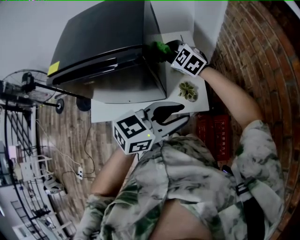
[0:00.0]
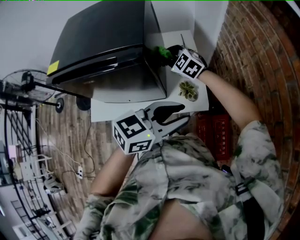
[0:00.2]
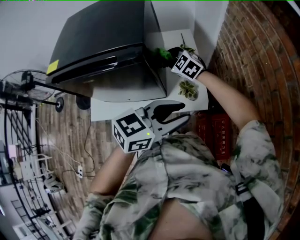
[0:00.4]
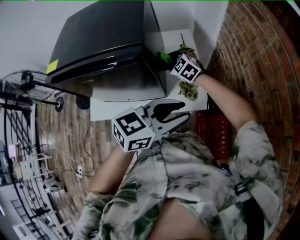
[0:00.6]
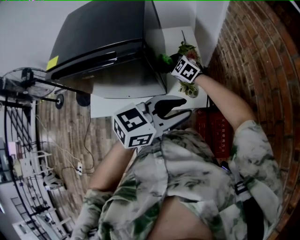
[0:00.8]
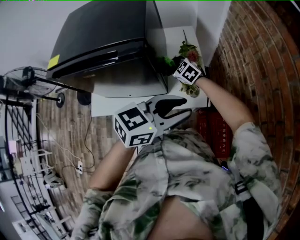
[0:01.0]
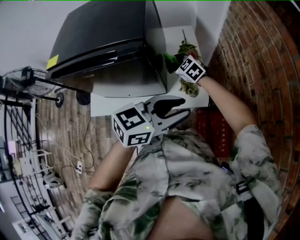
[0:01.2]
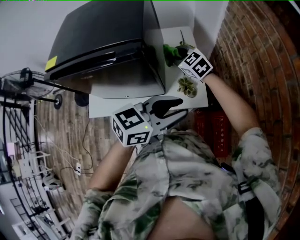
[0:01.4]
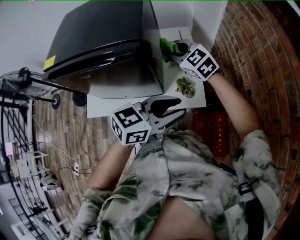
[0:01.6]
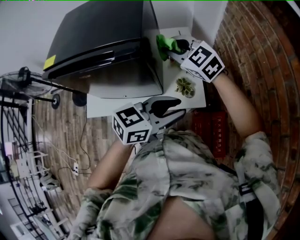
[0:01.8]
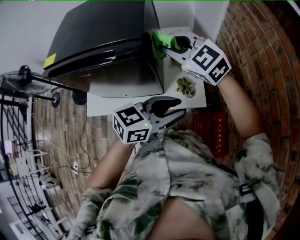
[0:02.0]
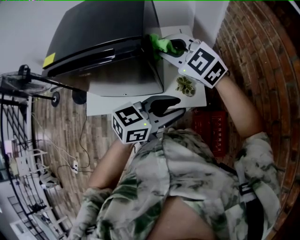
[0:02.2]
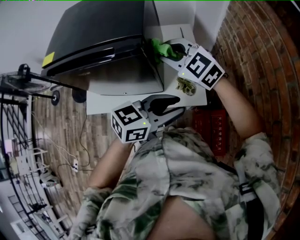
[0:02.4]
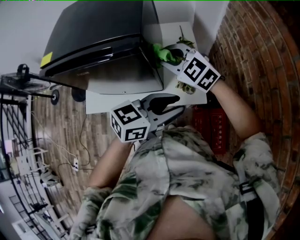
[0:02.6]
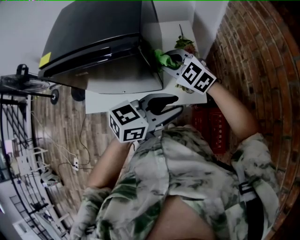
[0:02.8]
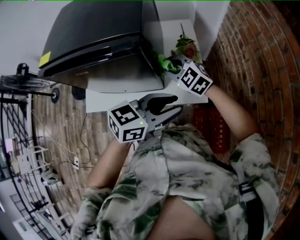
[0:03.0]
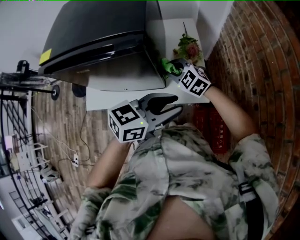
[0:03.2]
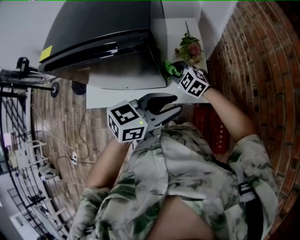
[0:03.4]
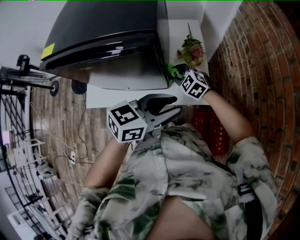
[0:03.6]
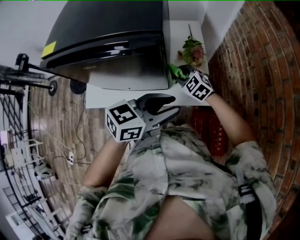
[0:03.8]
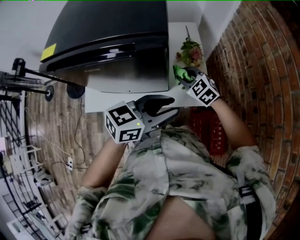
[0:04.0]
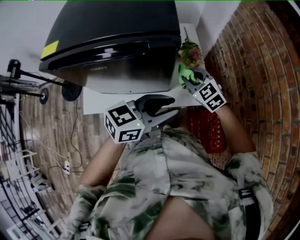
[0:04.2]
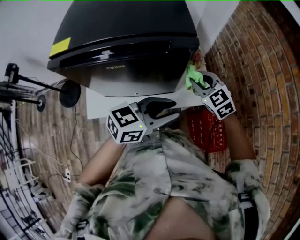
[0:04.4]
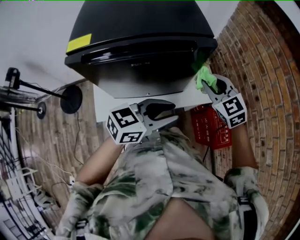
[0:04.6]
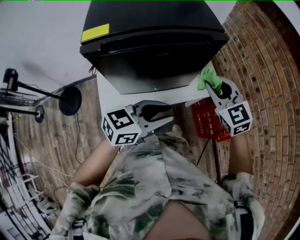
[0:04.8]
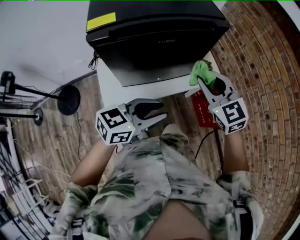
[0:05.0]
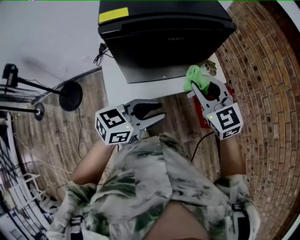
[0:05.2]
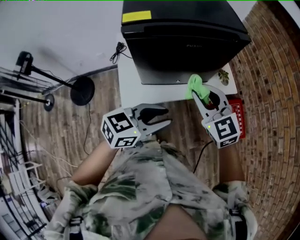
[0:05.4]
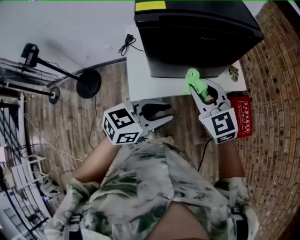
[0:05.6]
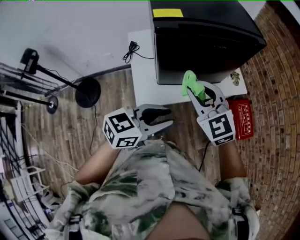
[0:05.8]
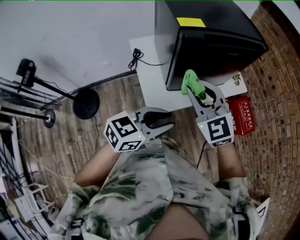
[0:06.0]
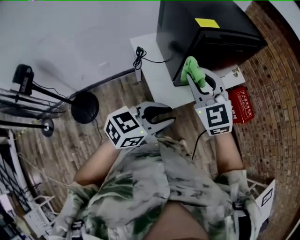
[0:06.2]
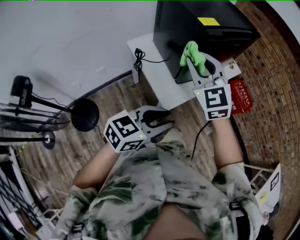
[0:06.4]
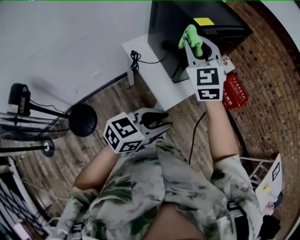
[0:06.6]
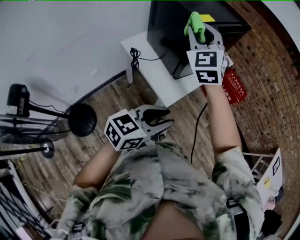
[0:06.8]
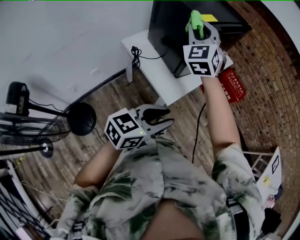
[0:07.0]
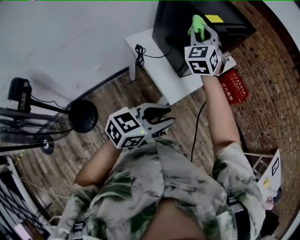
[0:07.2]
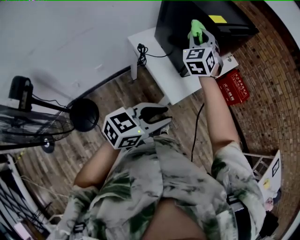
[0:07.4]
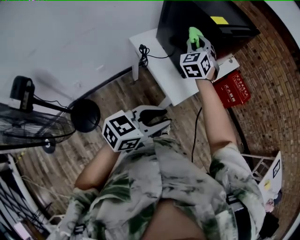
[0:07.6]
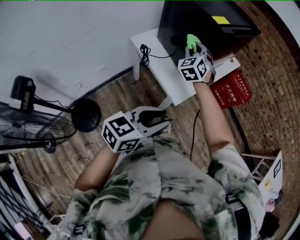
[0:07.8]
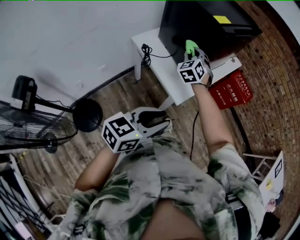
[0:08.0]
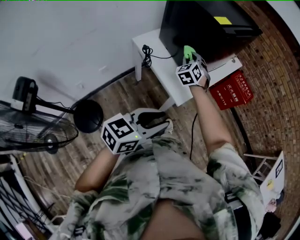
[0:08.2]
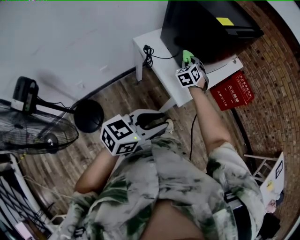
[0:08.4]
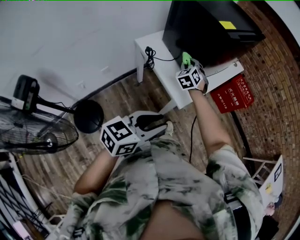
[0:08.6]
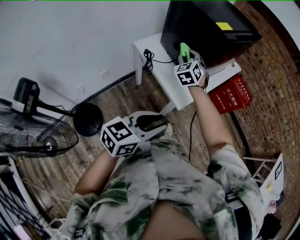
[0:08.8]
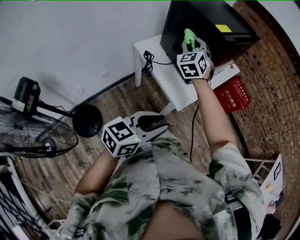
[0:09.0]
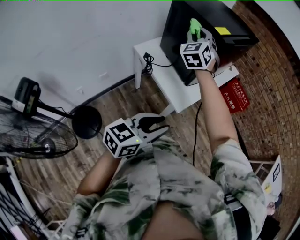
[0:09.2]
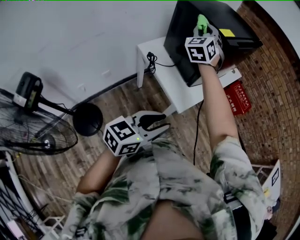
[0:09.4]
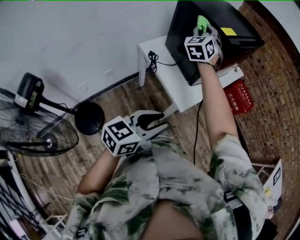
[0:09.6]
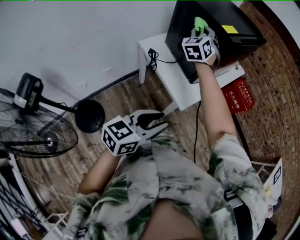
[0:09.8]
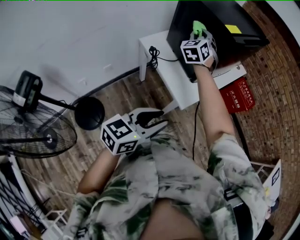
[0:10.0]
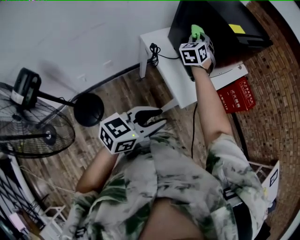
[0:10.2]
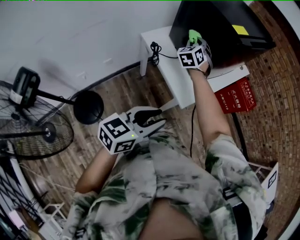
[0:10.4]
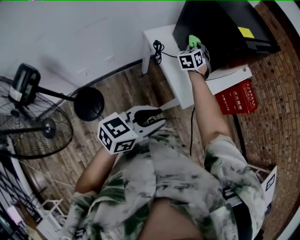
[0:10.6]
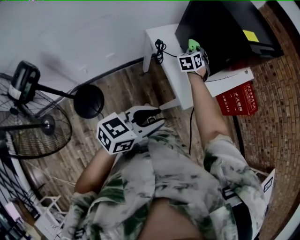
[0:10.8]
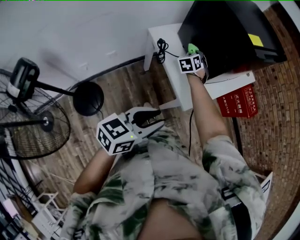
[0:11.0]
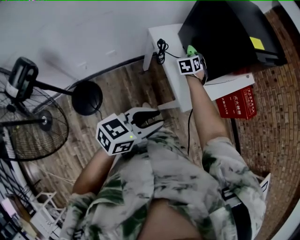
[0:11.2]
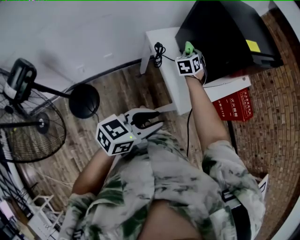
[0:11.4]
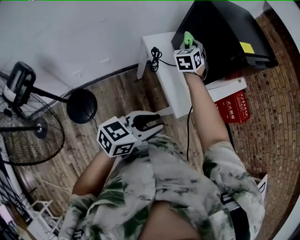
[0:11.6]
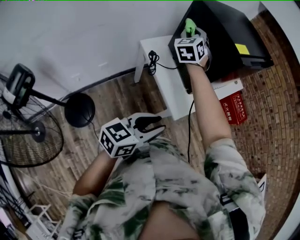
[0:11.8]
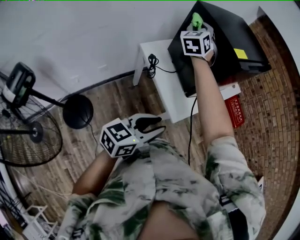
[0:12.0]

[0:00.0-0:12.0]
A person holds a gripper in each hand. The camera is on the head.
0.0 to 1.6 s: The right gripper travels downward and back again, approximately 15 cm each way.
1.6 to 3.0 s: The right gripper goes roughly 10 cm downward and backward.
3.0 to 4.4 s: The left gripper heads to the left, covering roughly 10 cm. The right gripper reaches about 10 cm downward, then returns, and changes its angle by approximately 20 degrees.
4.4 to 6.0 s: Both grippers are carried to the left and backward, approximately 40 cm. The right gripper rotates roughly 20 degrees.
6.0 to 7.6 s: The left gripper shifts by about 25 cm. Meanwhile the right gripper moves roughly 10 cm upward and comes back, and turns by approximately 50 degrees.
7.6 to 9.0 s: The right gripper moves some 15 cm downward and comes back.
9.0 to 10.4 s: The right gripper shifts some 15 cm downward and forward.
10.4 to 12.0 s: The right gripper goes about 20 cm upward and to the left.

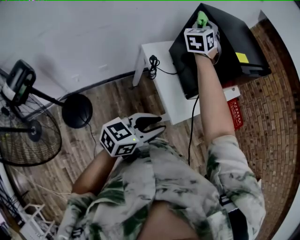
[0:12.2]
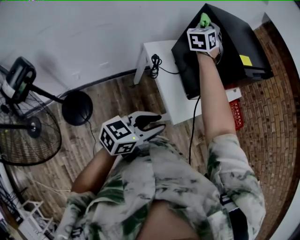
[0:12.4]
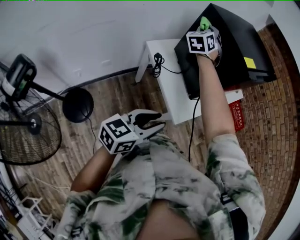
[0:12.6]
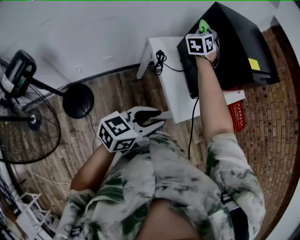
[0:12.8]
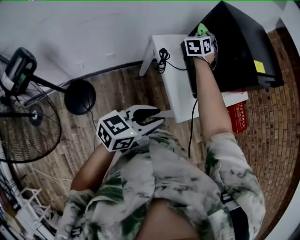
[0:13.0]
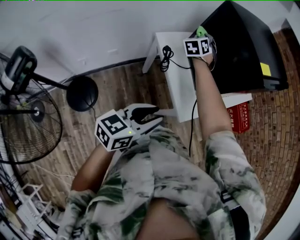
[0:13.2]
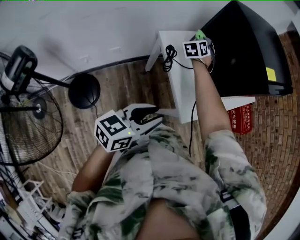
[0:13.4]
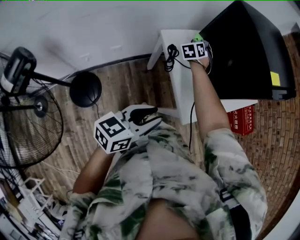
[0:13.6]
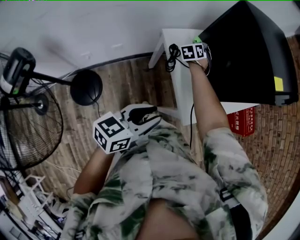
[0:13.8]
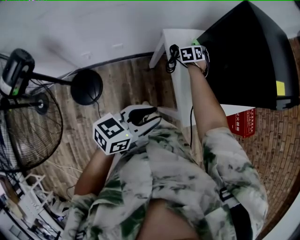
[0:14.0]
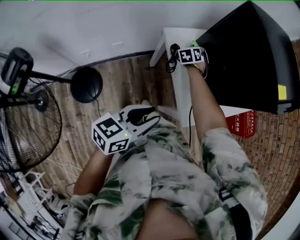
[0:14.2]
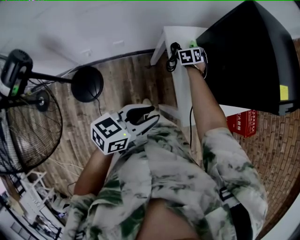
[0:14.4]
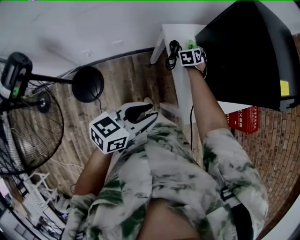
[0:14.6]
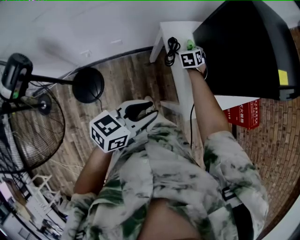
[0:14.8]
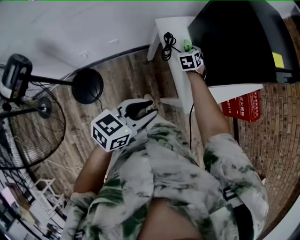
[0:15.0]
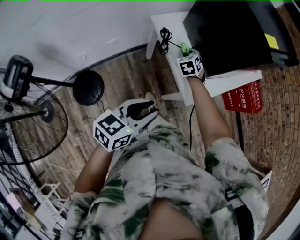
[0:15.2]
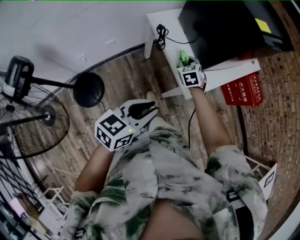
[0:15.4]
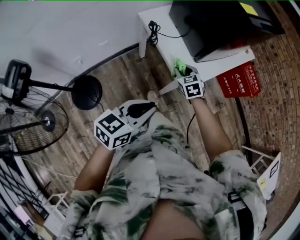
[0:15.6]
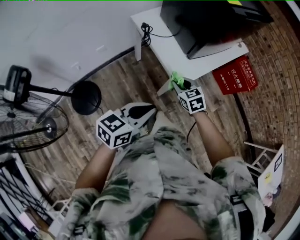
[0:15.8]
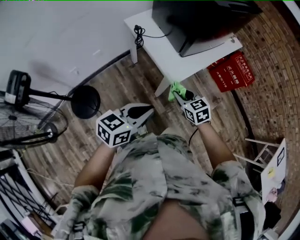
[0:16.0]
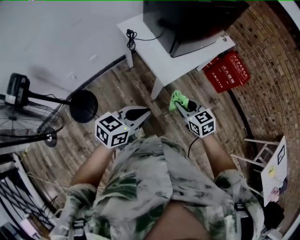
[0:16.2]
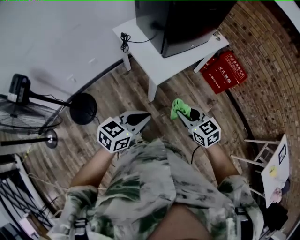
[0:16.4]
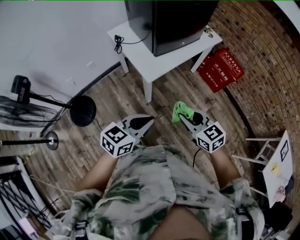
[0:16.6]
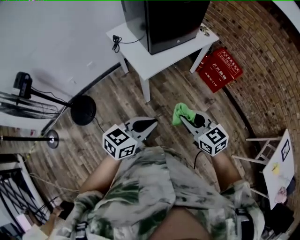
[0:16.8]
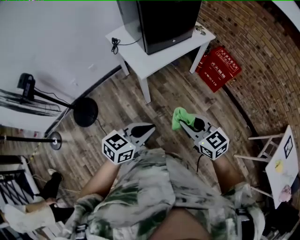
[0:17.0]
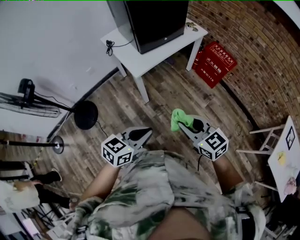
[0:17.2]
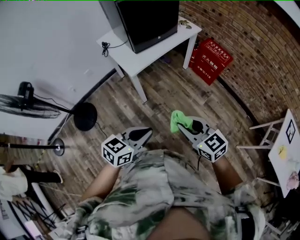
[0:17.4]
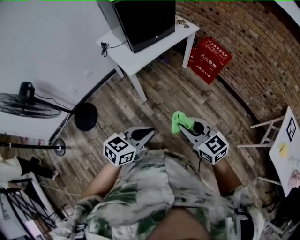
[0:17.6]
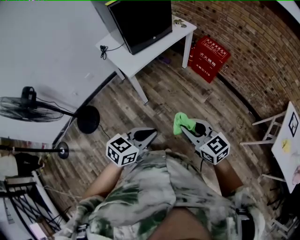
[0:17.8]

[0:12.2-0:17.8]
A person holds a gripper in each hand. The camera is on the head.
12.2 to 13.6 s: The left gripper is displaced to the left and downward by about 10 cm; the right gripper heads downward, covering about 30 cm, and rotates roughly 30 degrees.
13.6 to 15.0 s: The right gripper is displaced backward, downward and to the right by approximately 10 cm.
15.0 to 16.4 s: The left gripper heads to the right and backward, covering approximately 30 cm, and closes up; the right gripper travels backward and to the right by roughly 60 cm, and rotates approximately 40 degrees.
16.4 to 17.8 s: Both grippers move to the right and backward, about 35 cm.

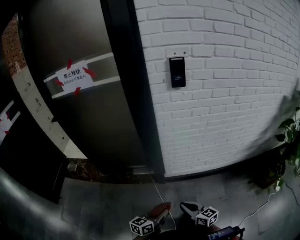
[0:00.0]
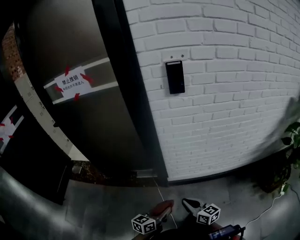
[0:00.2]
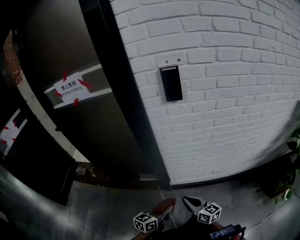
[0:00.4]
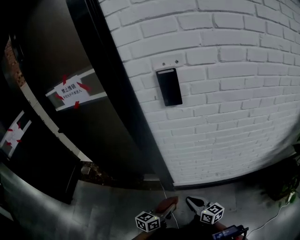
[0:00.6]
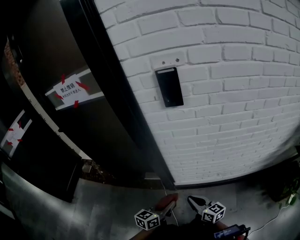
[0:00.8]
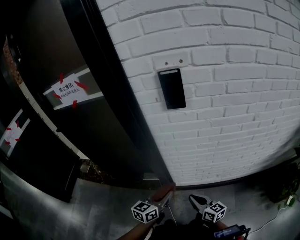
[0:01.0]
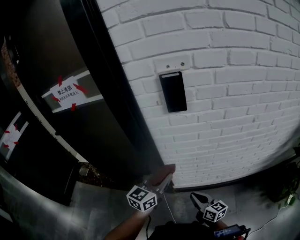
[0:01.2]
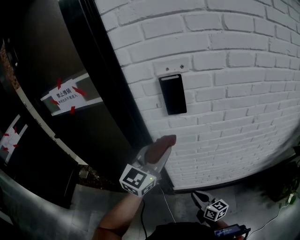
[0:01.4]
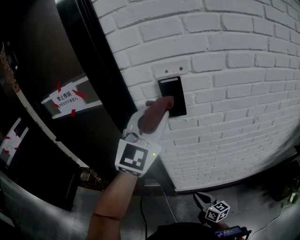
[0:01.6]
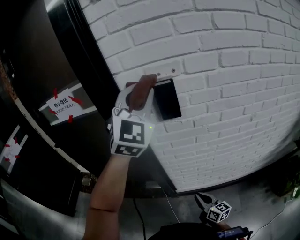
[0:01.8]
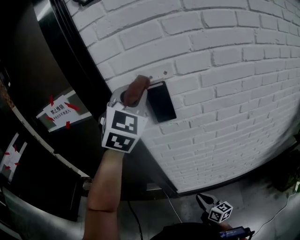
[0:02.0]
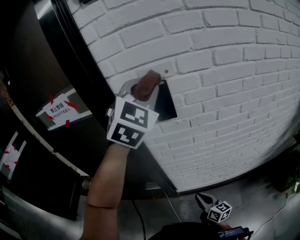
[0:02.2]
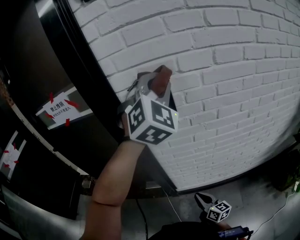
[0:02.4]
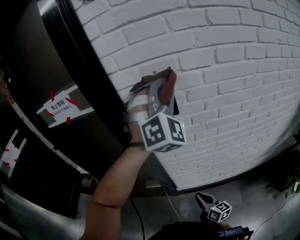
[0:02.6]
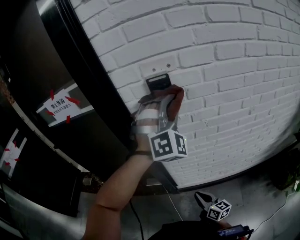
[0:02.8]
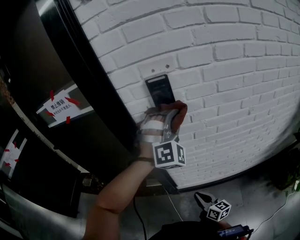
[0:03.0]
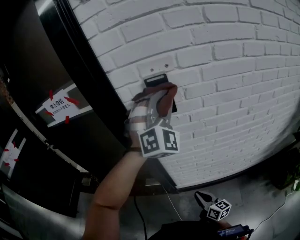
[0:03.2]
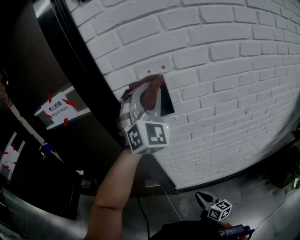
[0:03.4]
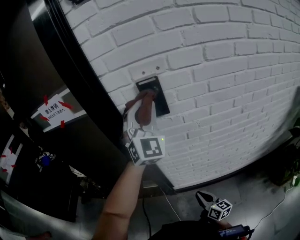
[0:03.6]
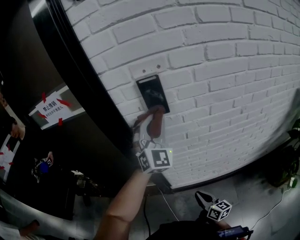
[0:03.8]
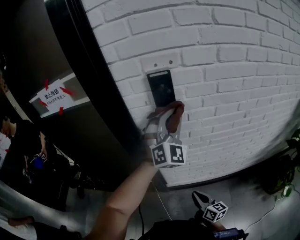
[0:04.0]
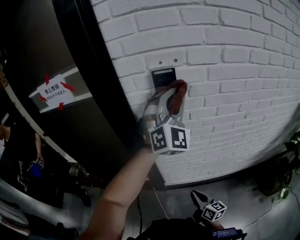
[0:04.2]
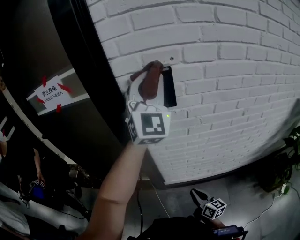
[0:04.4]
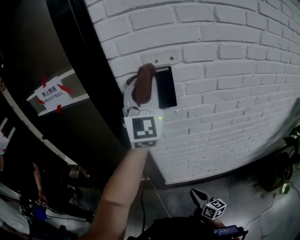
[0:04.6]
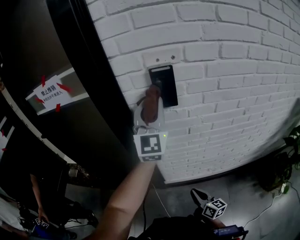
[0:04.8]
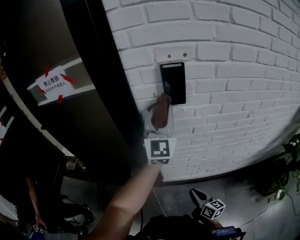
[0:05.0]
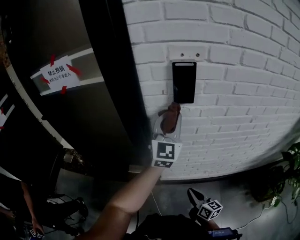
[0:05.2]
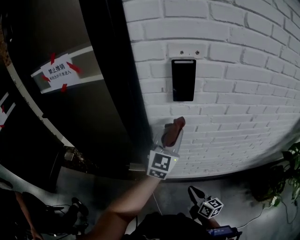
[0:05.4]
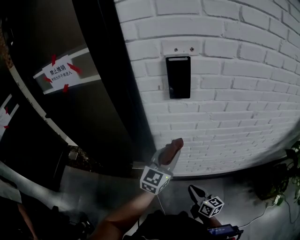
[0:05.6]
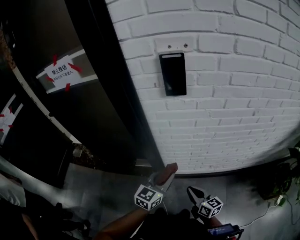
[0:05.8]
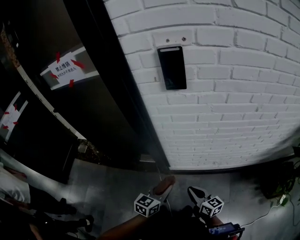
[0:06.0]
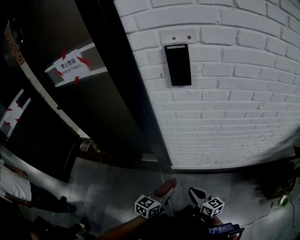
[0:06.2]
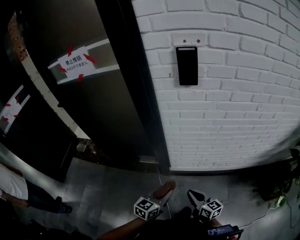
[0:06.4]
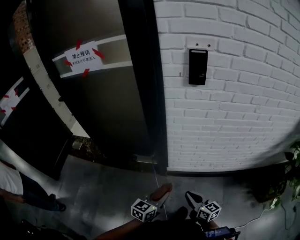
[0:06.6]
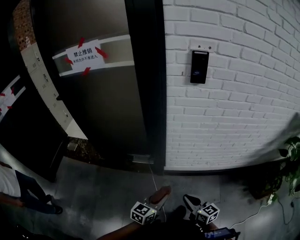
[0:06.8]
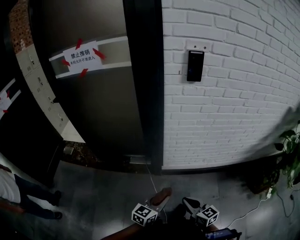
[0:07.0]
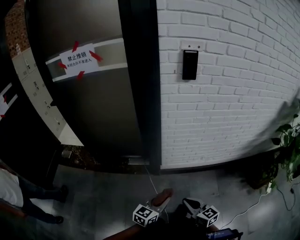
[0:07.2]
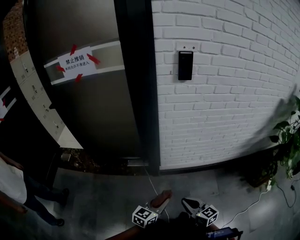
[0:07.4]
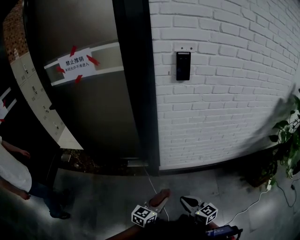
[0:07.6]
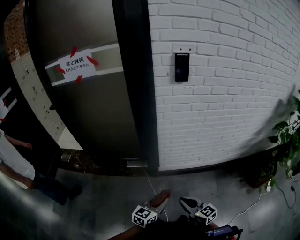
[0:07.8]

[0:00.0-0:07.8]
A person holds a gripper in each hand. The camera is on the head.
0.0 to 1.6 s: The right gripper shifts roughly 25 cm forward and to the right, while the left gripper shifts roughly 60 cm upward and forward, and twists roughly 70 degrees clockwise, seen from behind.
1.6 to 3.2 s: The left gripper swings up and down, some 15 cm each way, with 2 reversals, and rotates some 40 degrees.
3.2 to 4.6 s: The left gripper moves up and down over approximately 15 cm, changing direction 2 times, and rotates around the line of its fingers by roughly 40 degrees, counterclockwise from behind.
4.6 to 6.2 s: The left gripper heads downward and backward, covering approximately 60 cm, and angles its fingers downward, by some 50 degrees, while the right gripper shifts roughly 5 cm backward.
6.2 to 7.8 s: The left gripper travels backward by some 20 cm; the right gripper heads backward and to the left, covering roughly 20 cm.
